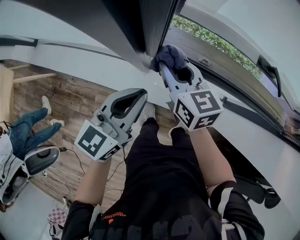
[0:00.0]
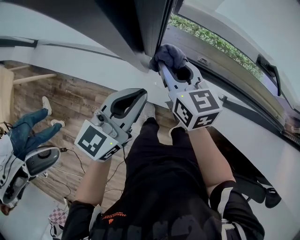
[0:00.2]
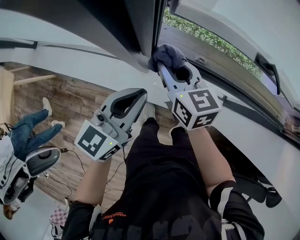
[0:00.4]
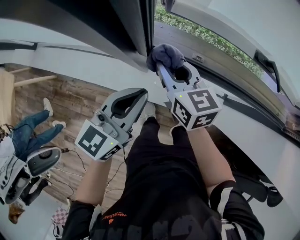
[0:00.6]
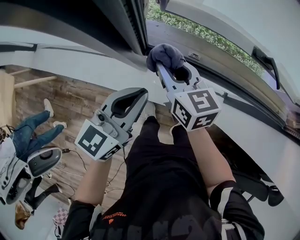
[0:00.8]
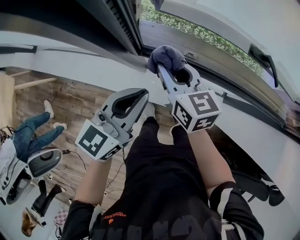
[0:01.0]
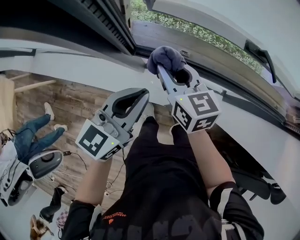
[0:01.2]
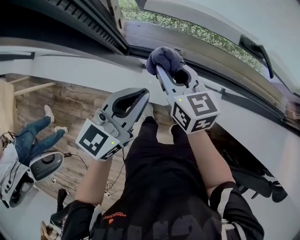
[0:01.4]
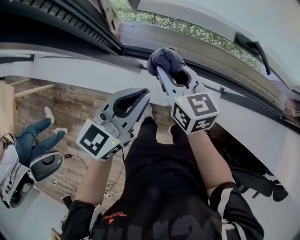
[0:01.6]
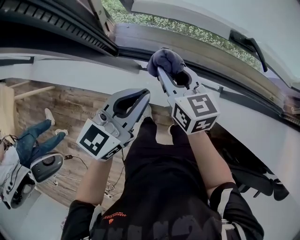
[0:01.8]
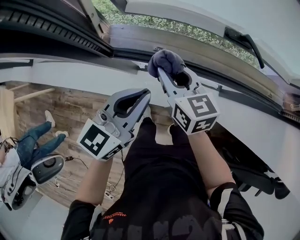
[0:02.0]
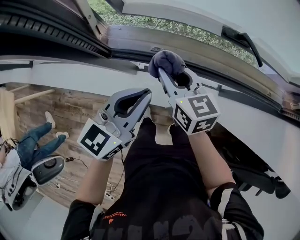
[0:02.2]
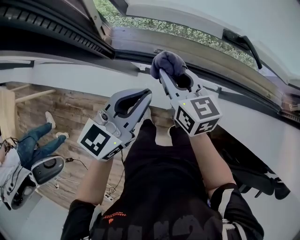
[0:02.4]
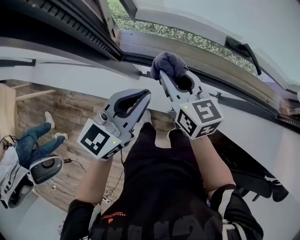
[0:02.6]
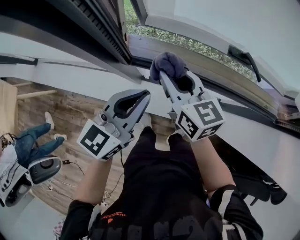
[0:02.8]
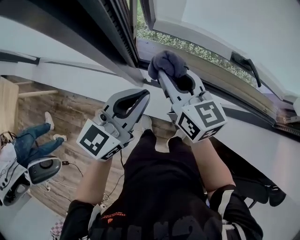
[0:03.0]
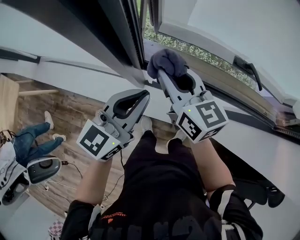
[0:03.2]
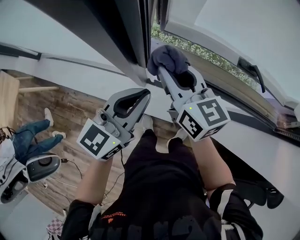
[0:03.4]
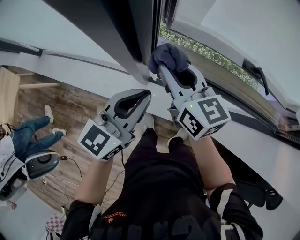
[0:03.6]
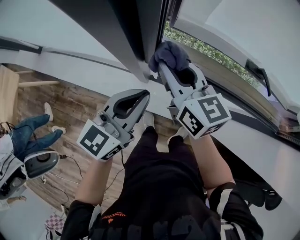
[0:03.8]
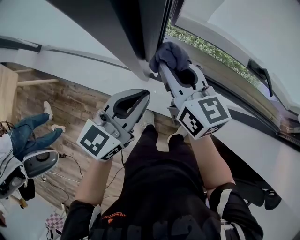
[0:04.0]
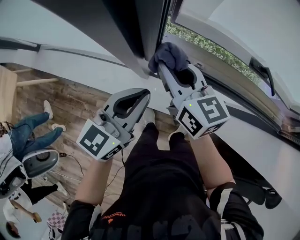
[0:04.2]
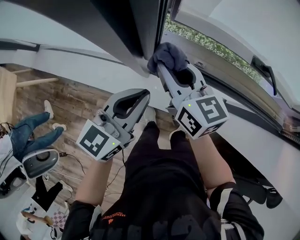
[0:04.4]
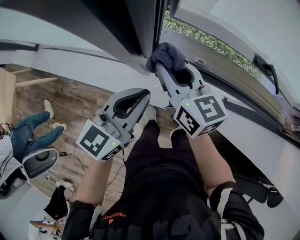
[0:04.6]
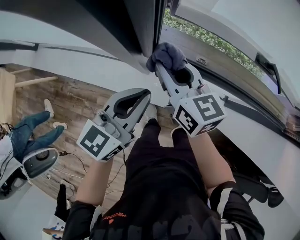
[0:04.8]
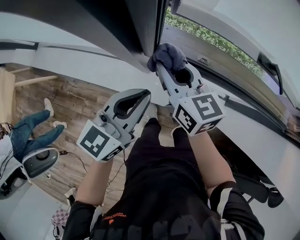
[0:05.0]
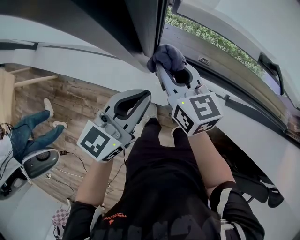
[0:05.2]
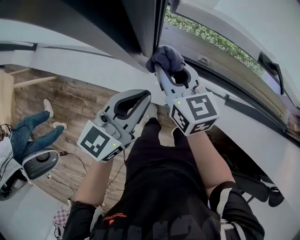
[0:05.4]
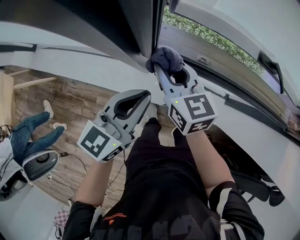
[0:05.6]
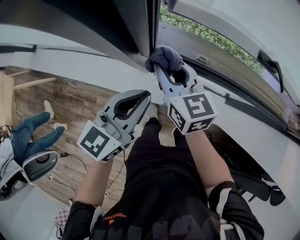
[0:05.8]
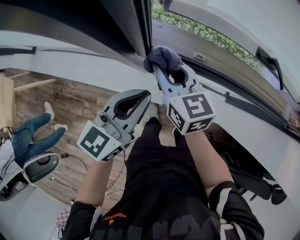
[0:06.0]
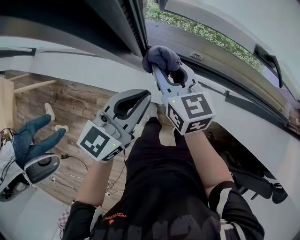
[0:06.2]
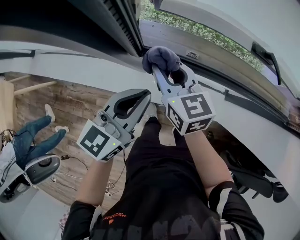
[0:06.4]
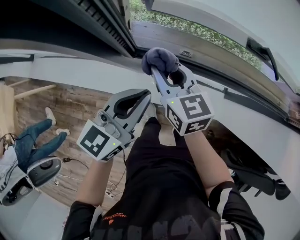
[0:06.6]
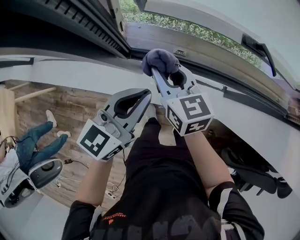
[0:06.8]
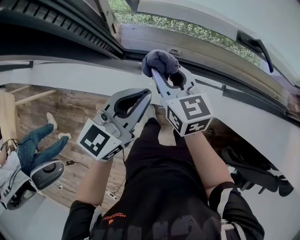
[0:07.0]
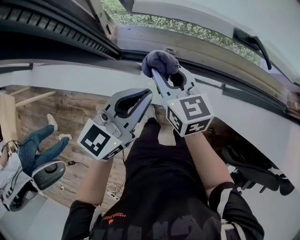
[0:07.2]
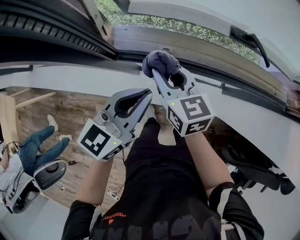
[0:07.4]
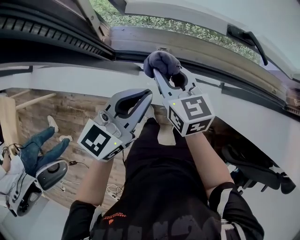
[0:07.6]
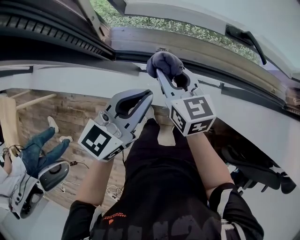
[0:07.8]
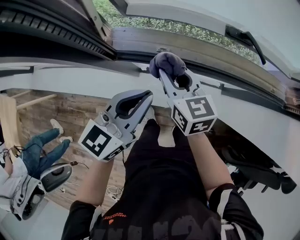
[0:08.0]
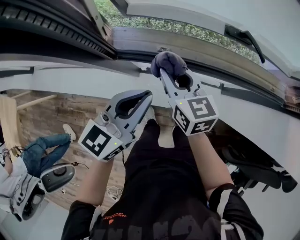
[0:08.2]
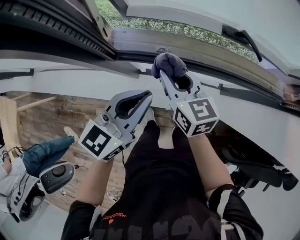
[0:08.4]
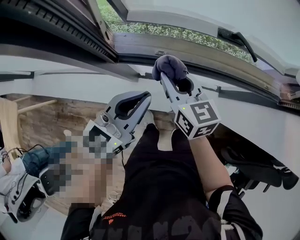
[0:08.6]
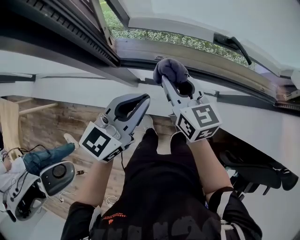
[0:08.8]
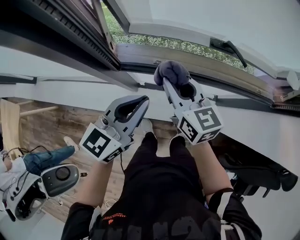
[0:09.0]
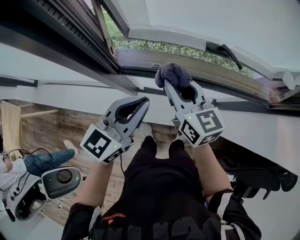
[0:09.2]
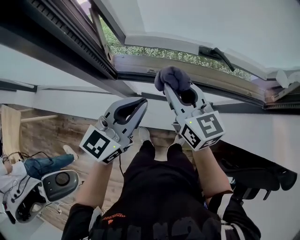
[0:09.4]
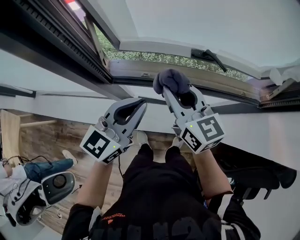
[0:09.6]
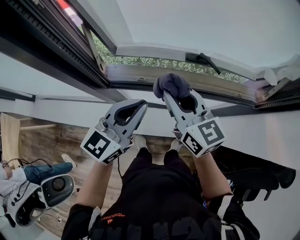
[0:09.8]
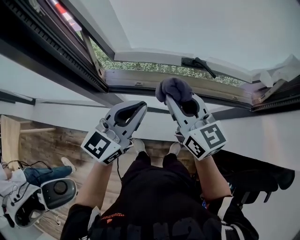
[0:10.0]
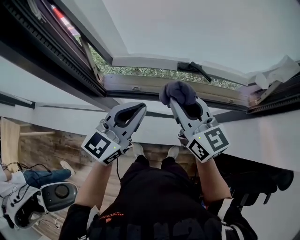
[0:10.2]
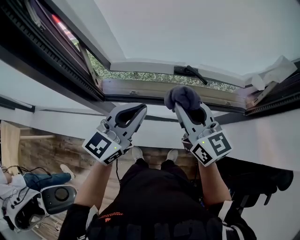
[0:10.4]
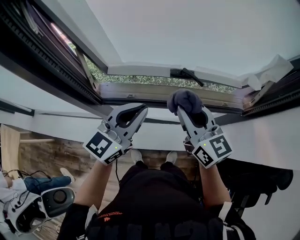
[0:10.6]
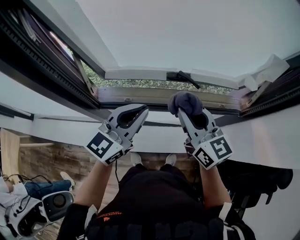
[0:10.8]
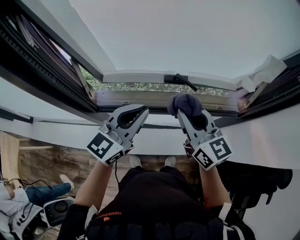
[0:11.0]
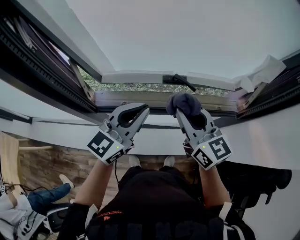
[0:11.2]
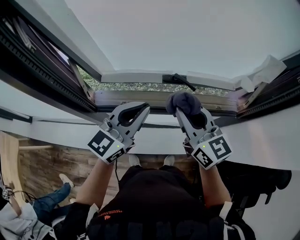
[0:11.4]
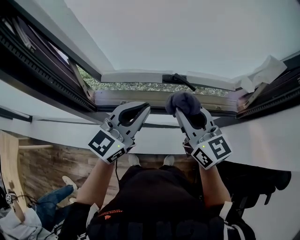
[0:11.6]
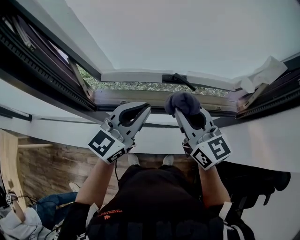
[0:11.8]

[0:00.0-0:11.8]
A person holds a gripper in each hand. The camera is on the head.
0:00.0 to 0:01.4: Both grippers travel together to the right, some 10 cm.
0:01.4 to 0:03.0: The left gripper shifts some 5 cm upward, and moves about 5 cm to the right and comes back. Meanwhile the right gripper shifts about 10 cm upward.
0:03.0 to 0:04.4: Both grippers travel together to the left, about 5 cm.
0:04.4 to 0:06.0: The right gripper heads downward, covering approximately 5 cm.
0:06.0 to 0:07.4: Both grippers move to the right, some 10 cm.
0:07.4 to 0:08.8: Both grippers move upward, roughly 5 cm.
0:08.8 to 0:10.4: The right gripper heads upward and to the right, covering some 20 cm, while the left gripper heads upward and to the right, covering some 15 cm.
0:10.4 to 0:11.8: The left gripper shifts by some 5 cm.

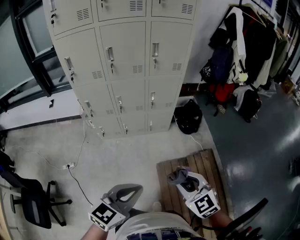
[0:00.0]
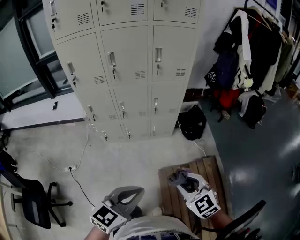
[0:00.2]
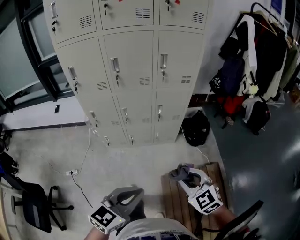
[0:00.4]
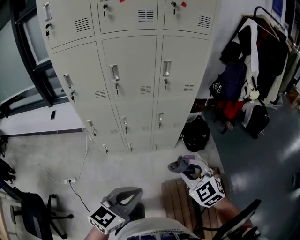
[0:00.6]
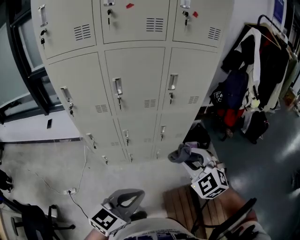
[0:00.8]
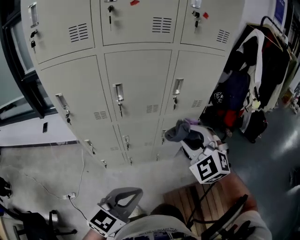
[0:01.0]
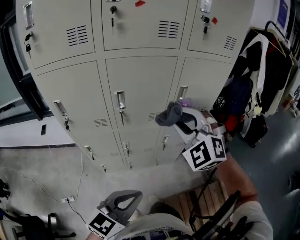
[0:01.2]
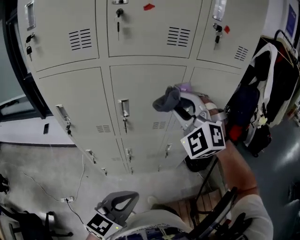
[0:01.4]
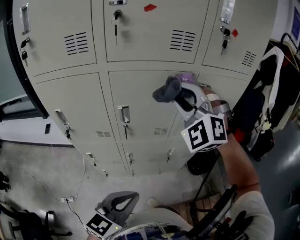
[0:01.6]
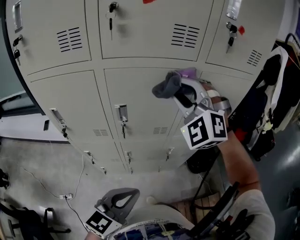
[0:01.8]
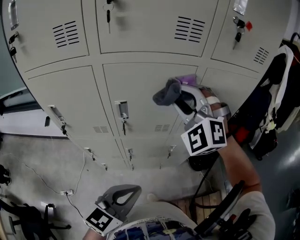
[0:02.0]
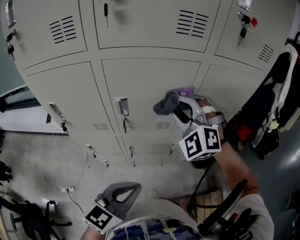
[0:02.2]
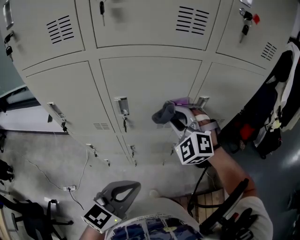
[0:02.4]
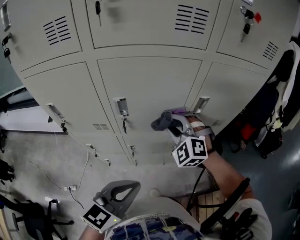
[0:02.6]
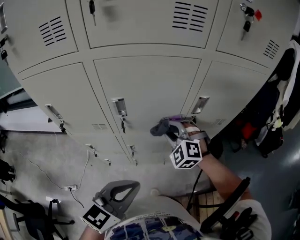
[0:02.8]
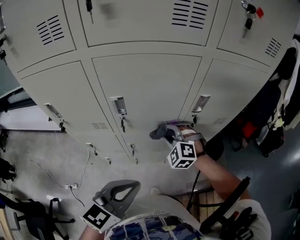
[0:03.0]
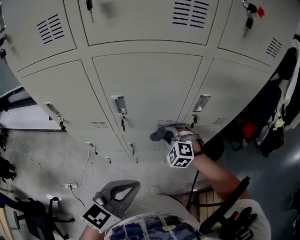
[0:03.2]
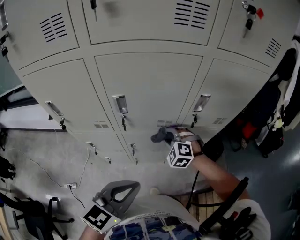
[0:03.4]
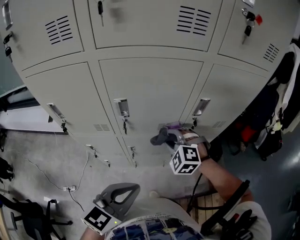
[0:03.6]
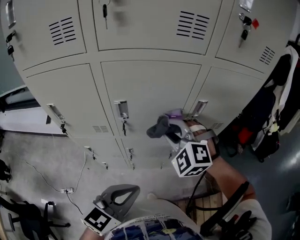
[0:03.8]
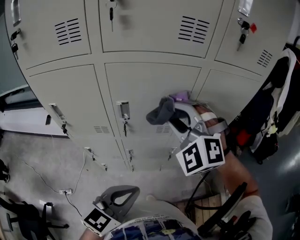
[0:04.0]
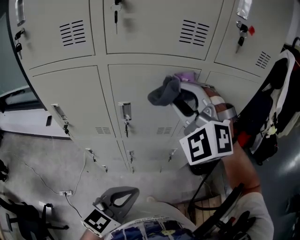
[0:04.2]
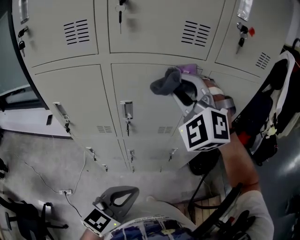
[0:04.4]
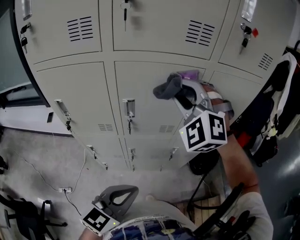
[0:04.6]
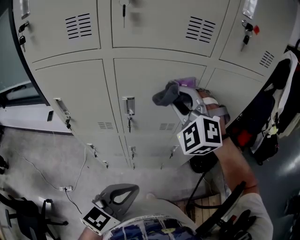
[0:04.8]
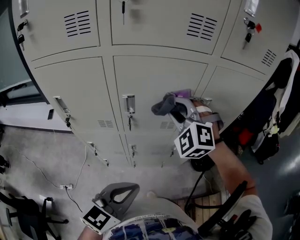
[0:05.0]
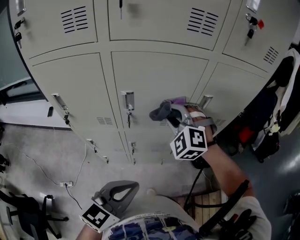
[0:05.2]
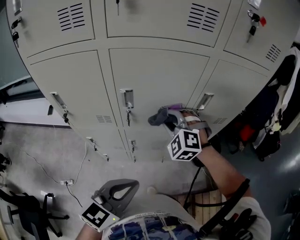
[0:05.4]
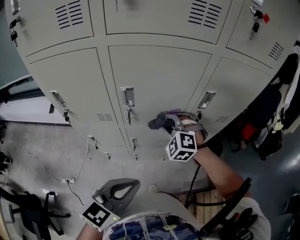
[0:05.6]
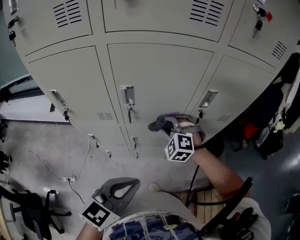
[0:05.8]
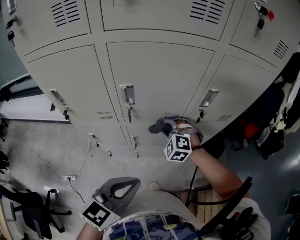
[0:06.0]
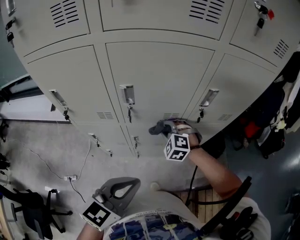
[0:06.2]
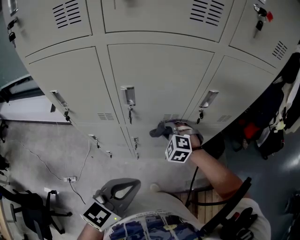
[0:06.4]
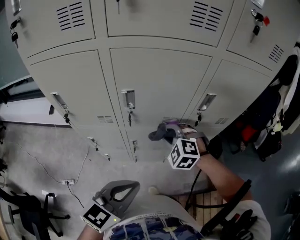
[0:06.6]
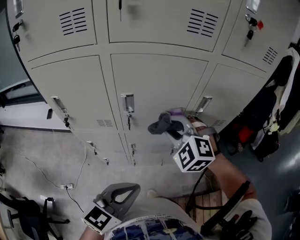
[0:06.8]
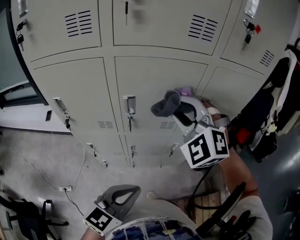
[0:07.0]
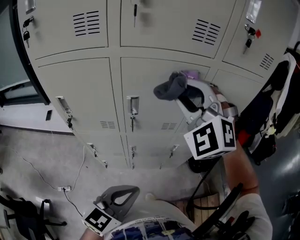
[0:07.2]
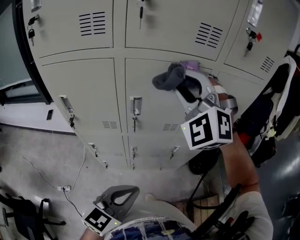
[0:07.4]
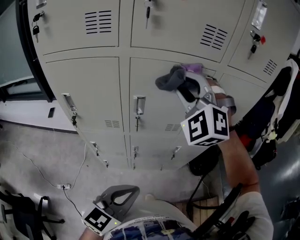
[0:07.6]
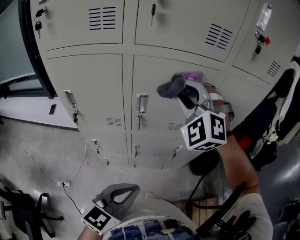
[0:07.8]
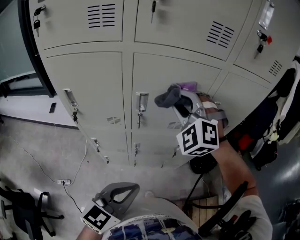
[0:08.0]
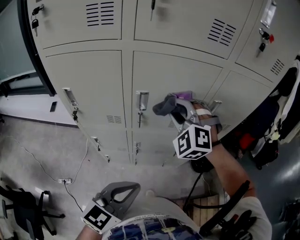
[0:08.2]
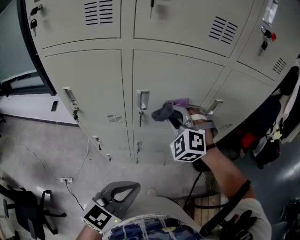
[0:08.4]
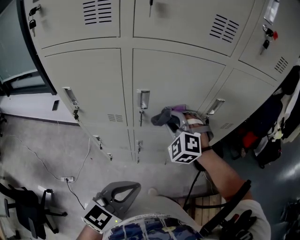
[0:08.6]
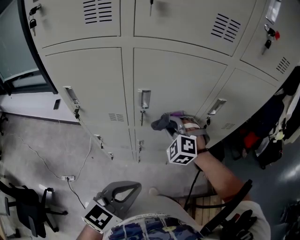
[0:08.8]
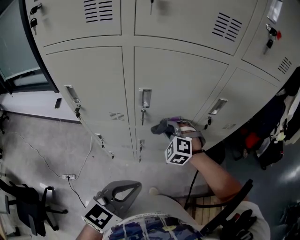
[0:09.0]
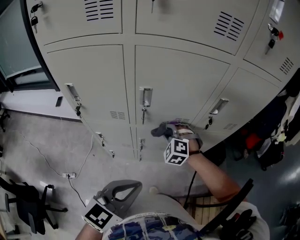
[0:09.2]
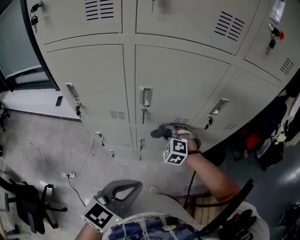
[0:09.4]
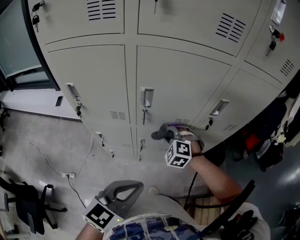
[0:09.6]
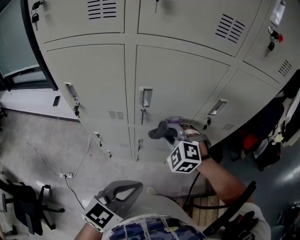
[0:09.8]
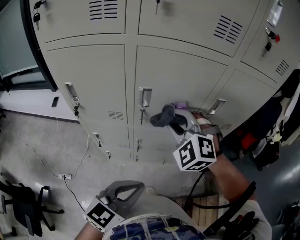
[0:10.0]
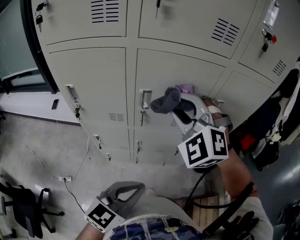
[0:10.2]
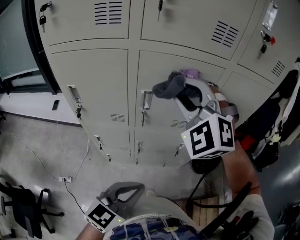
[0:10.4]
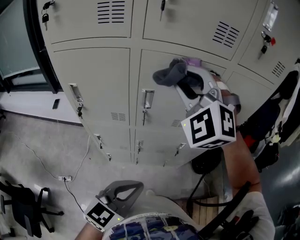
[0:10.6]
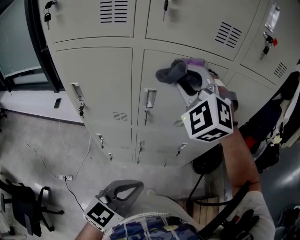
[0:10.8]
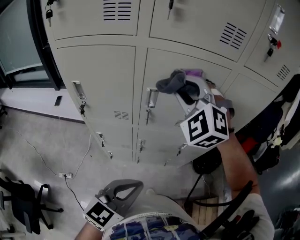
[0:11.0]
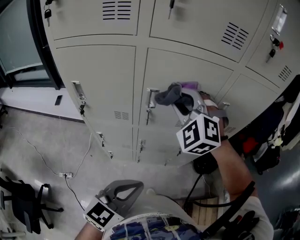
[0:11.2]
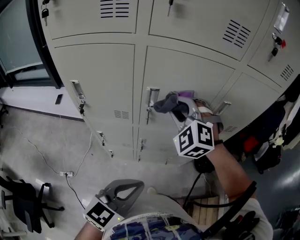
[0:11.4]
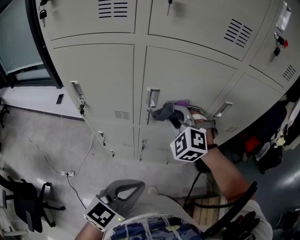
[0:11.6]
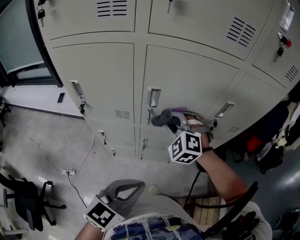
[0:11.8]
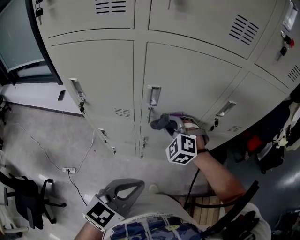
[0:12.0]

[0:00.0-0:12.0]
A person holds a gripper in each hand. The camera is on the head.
0:00.0 to 0:01.6: The pair of grippers is taken forward and to the left, about 50 cm. The right gripper is displaced upward by some 30 cm, and rolls counterclockwise, seen from behind, by about 60 degrees.
0:01.6 to 0:03.0: The left gripper moves forward, approximately 5 cm, while the right gripper goes roughly 35 cm downward, and swivels roughly 30 degrees.
0:03.0 to 0:04.4: The right gripper is displaced upward by about 35 cm, and turns by about 30 degrees.
0:04.4 to 0:06.0: The right gripper moves downward, about 35 cm, and angles its fingers downward, by about 30 degrees.
0:06.0 to 0:07.6: The right gripper moves upward, roughly 35 cm, and points its fingers roughly 30 degrees further upward.
0:07.6 to 0:09.0: The right gripper travels downward by some 30 cm, and turns by approximately 30 degrees.
0:09.0 to 0:10.4: The right gripper is displaced upward by about 30 cm, and turns by some 30 degrees.
0:10.4 to 0:12.0: The right gripper goes about 25 cm downward, and swivels about 20 degrees.
